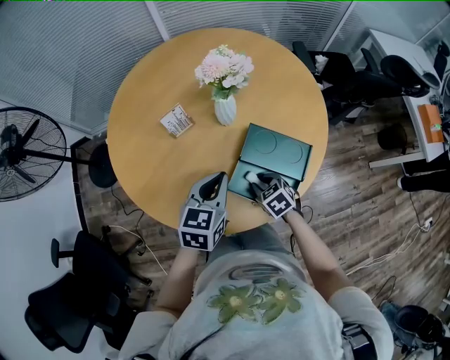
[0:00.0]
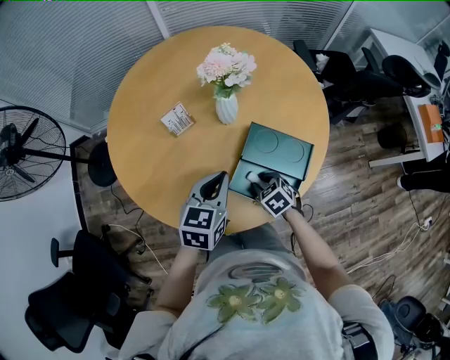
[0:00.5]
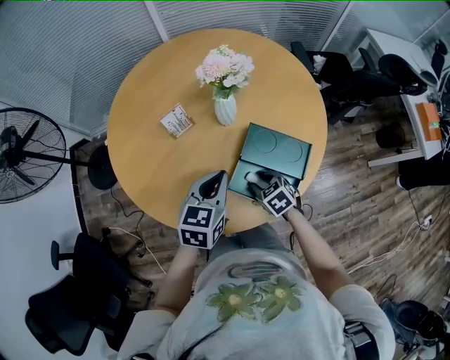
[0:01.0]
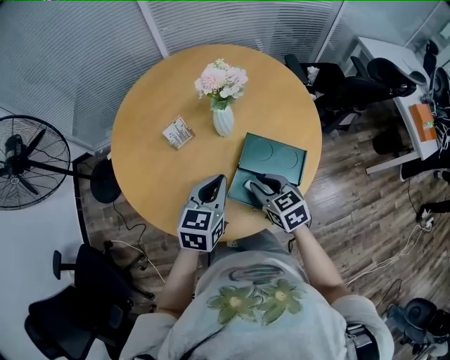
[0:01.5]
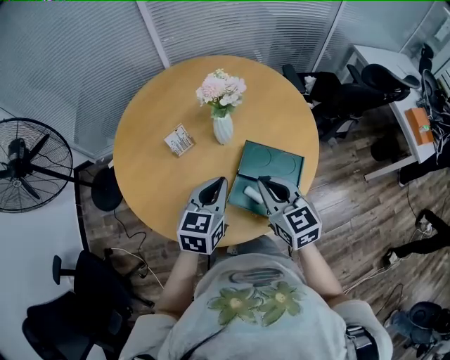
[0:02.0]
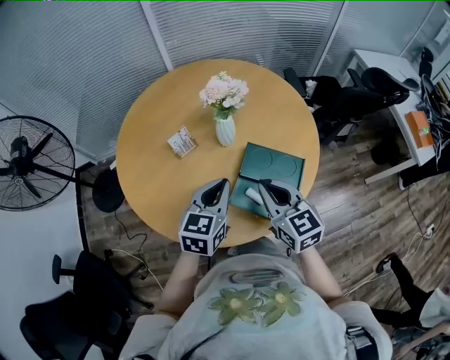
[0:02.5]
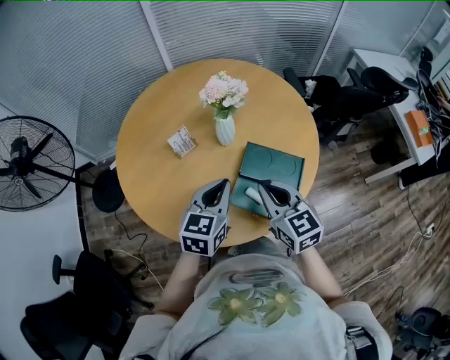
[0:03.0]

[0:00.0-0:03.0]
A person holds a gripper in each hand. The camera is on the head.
0:00.0 to 0:01.5: The right gripper is displaced upward by some 15 cm, and rotates approximately 20 degrees.
0:01.5 to 0:03.0: The right gripper heads upward, covering some 10 cm, and closes its fingers.

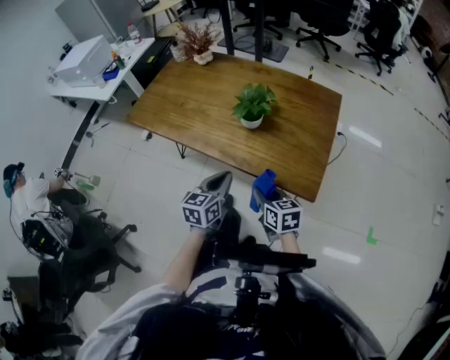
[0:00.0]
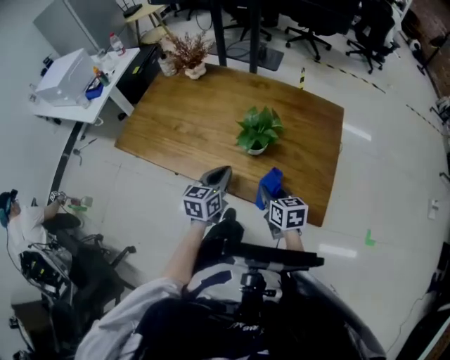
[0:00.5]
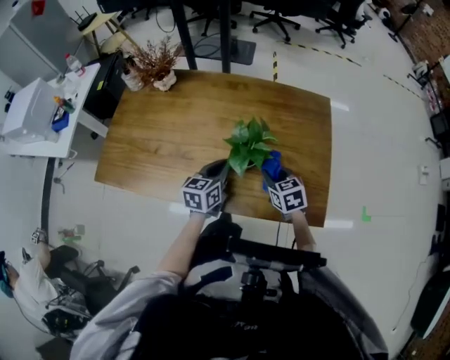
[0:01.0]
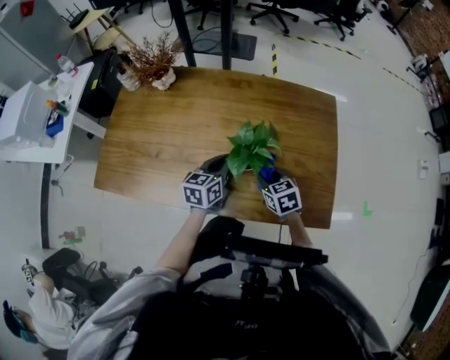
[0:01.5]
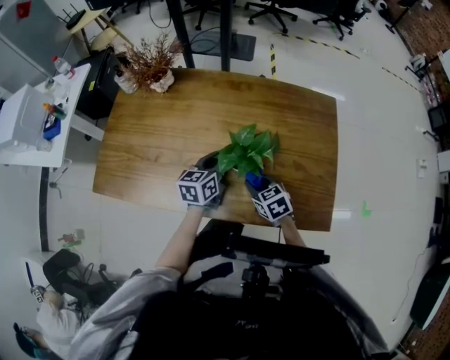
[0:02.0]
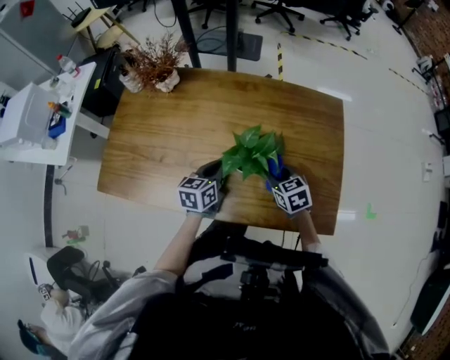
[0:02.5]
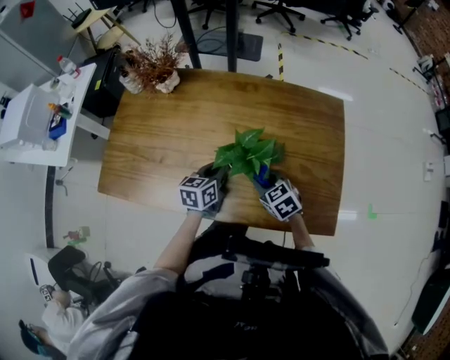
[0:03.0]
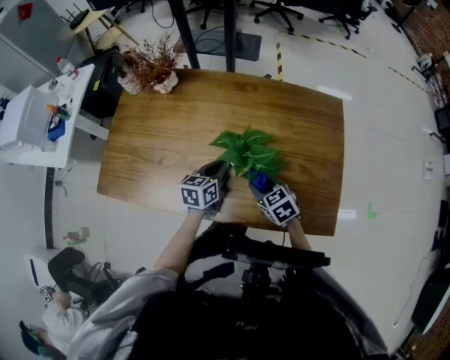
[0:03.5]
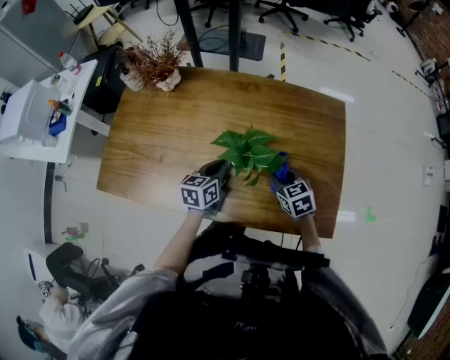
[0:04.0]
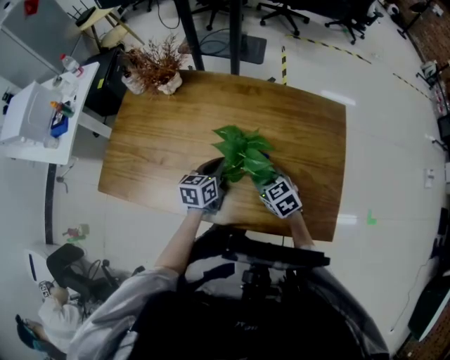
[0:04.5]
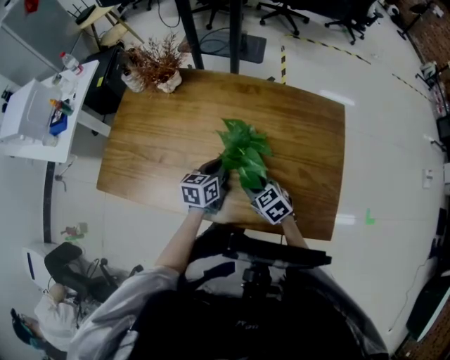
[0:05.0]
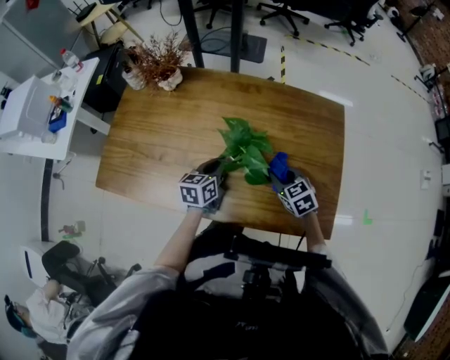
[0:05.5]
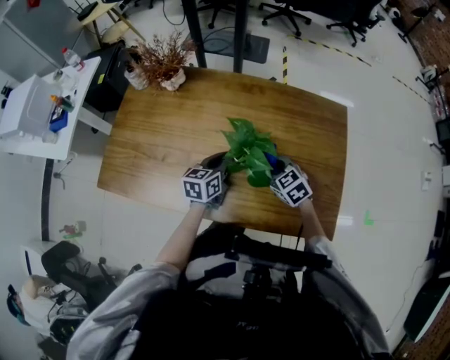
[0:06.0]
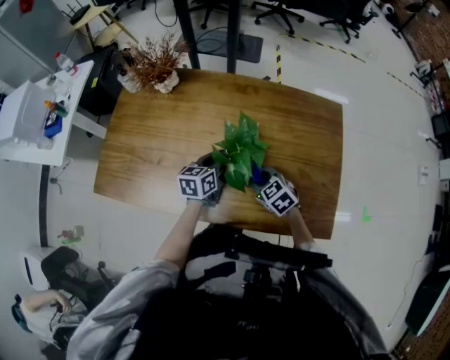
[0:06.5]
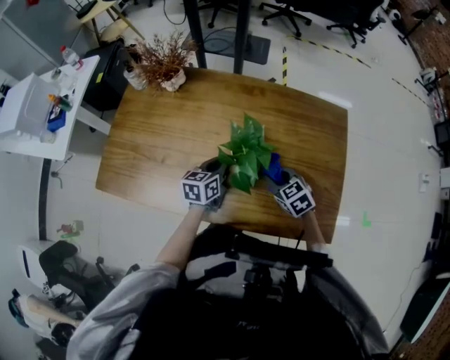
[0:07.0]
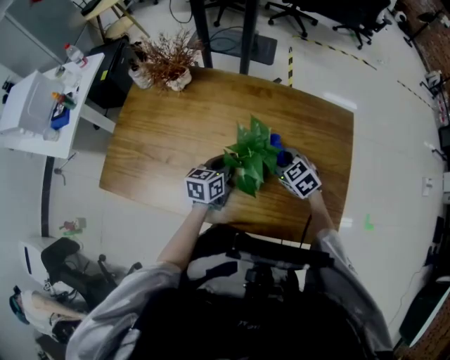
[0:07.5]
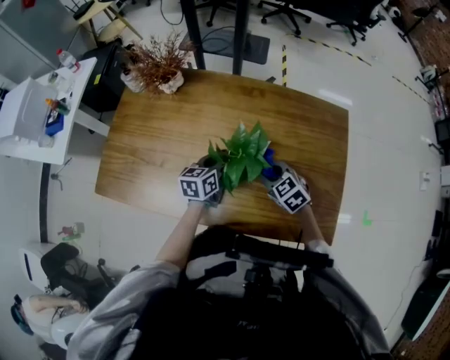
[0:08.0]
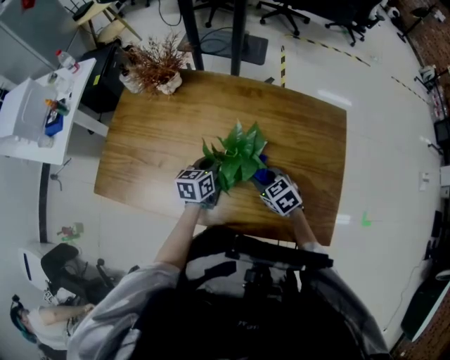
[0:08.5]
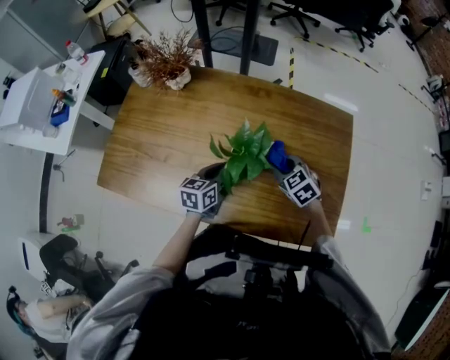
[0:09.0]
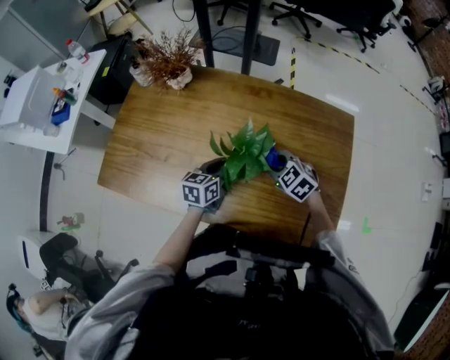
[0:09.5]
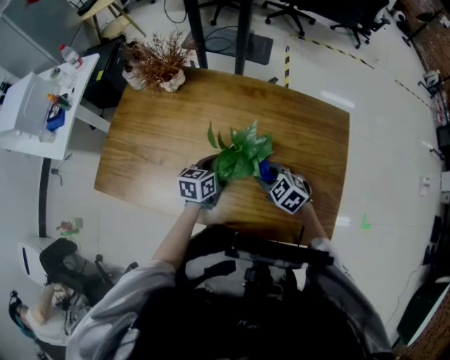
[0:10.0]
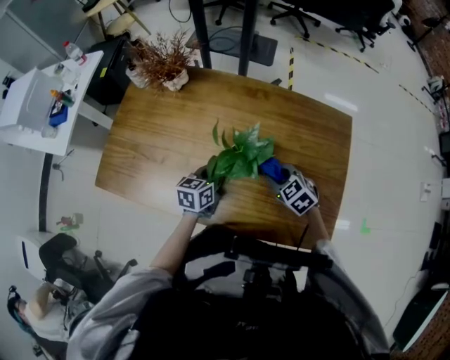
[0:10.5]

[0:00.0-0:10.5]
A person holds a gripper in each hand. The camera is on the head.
0:00.0 to 0:02.0: The grippers both shift forward by roughly 30 cm. The right gripper swivels roughly 20 degrees.
0:02.0 to 0:04.0: The right gripper moves left and right over some 5 cm, changing direction 2 times.
0:04.0 to 0:06.5: The right gripper goes left and right, approximately 10 cm each way, reversing 2 times.
0:06.5 to 0:08.5: The right gripper reaches roughly 10 cm forward, then returns.

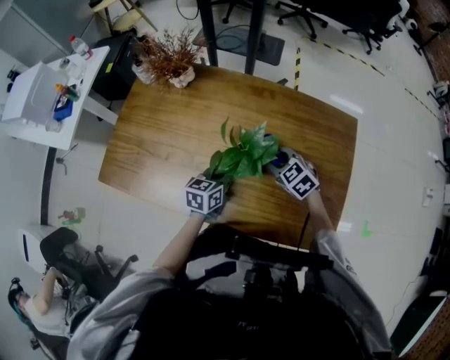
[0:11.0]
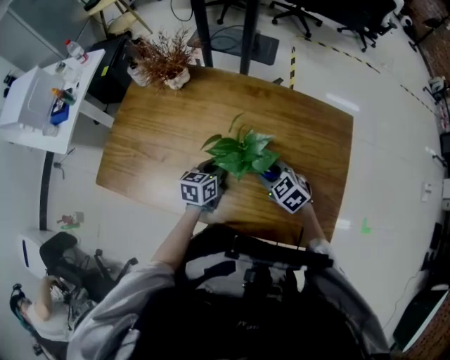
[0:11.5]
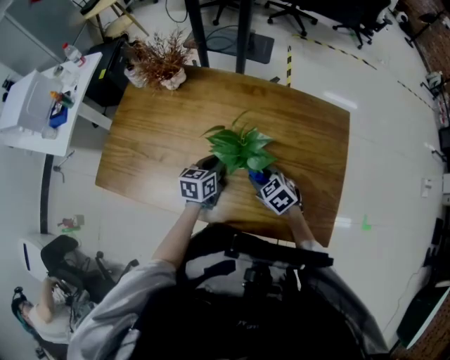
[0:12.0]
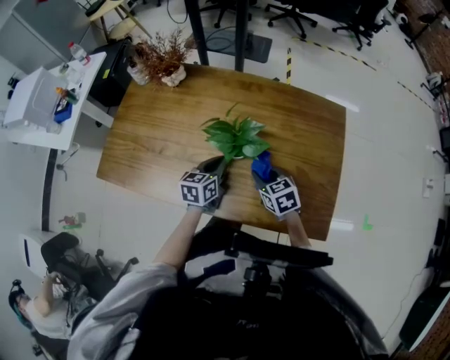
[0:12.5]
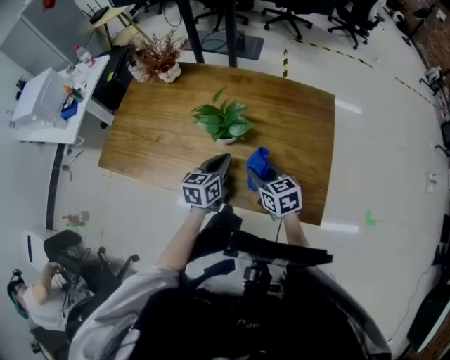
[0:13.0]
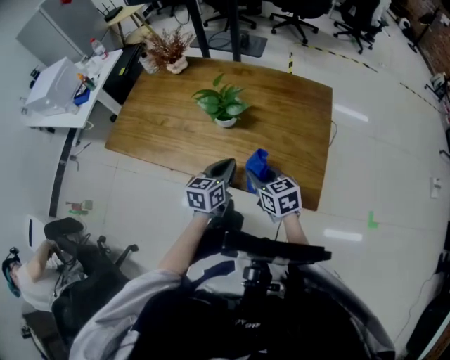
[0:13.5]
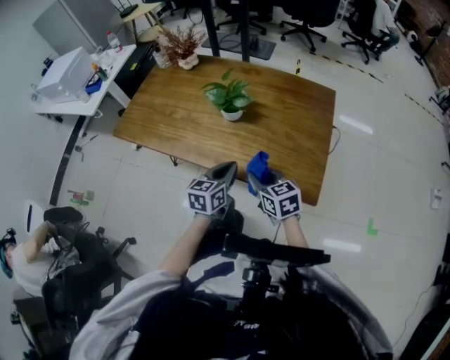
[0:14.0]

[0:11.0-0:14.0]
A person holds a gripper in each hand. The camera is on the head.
0:11.0 to 0:12.5: The right gripper is displaced backward by approximately 10 cm, and swivels about 30 degrees.
0:12.5 to 0:14.0: The two grippers go approximately 20 cm backward.

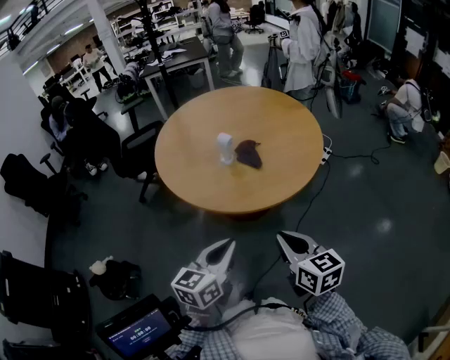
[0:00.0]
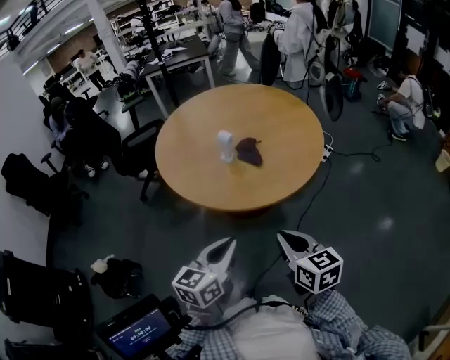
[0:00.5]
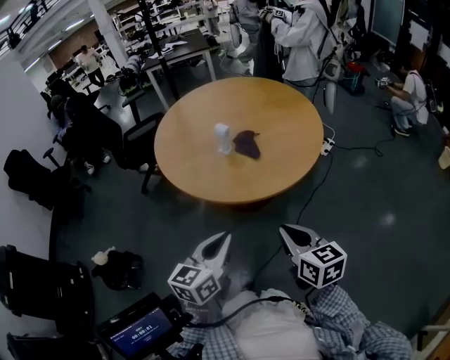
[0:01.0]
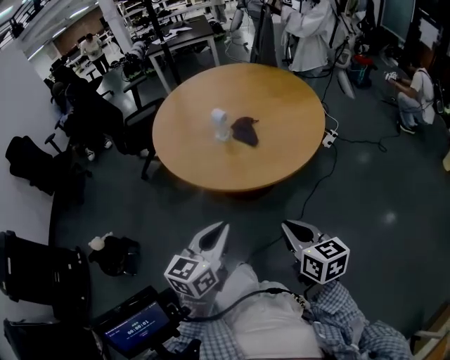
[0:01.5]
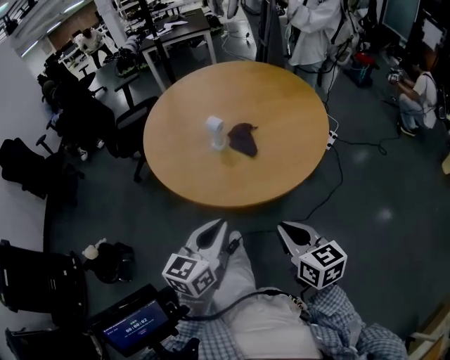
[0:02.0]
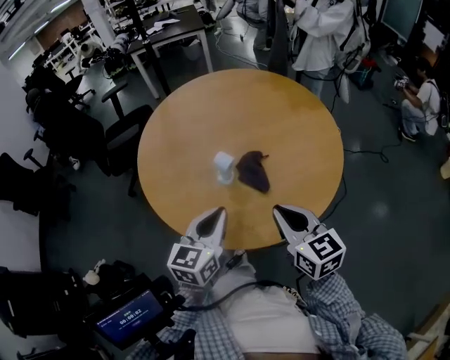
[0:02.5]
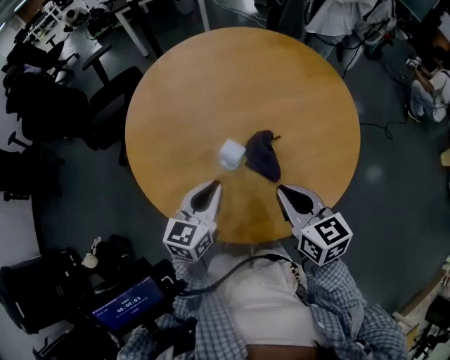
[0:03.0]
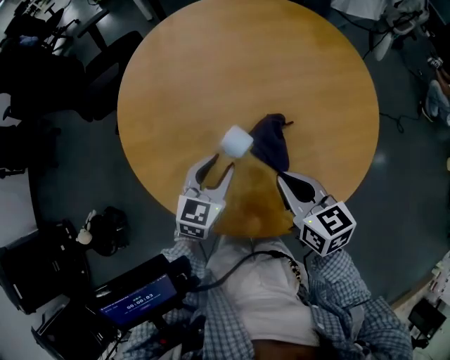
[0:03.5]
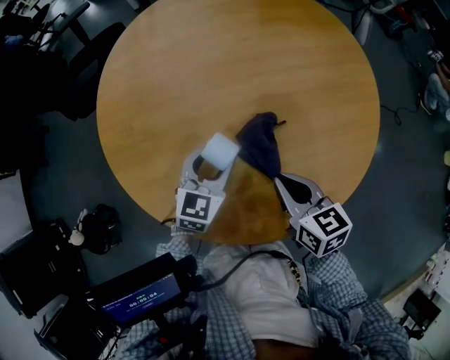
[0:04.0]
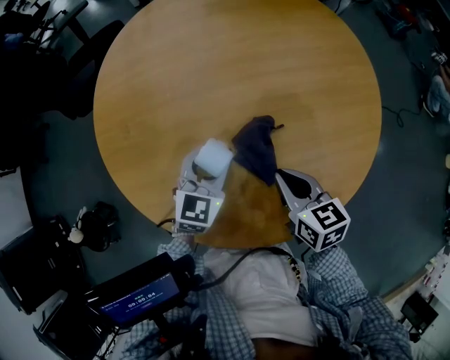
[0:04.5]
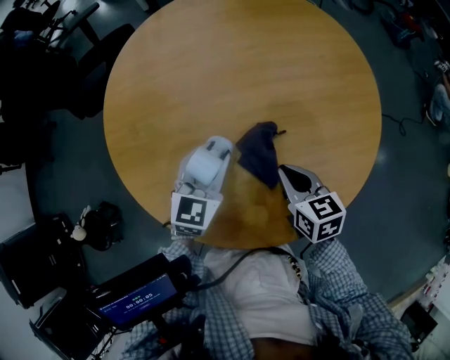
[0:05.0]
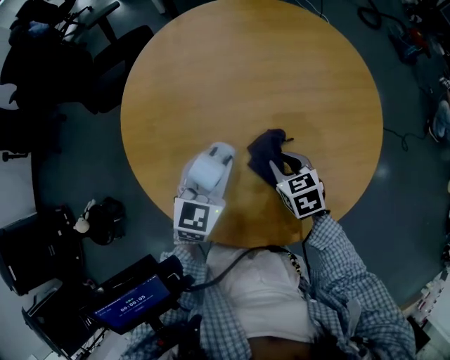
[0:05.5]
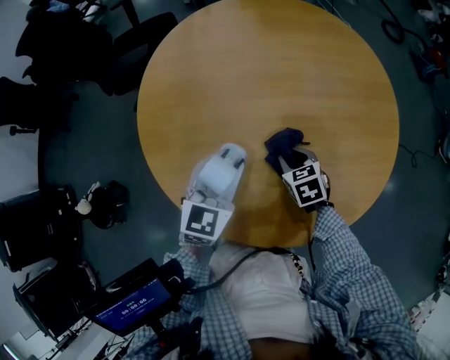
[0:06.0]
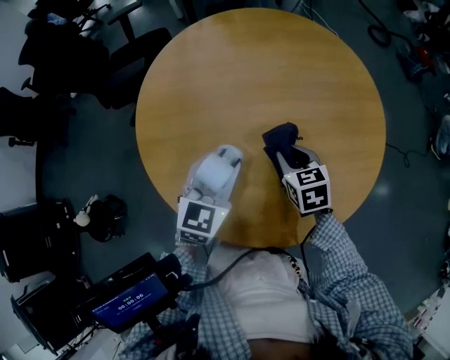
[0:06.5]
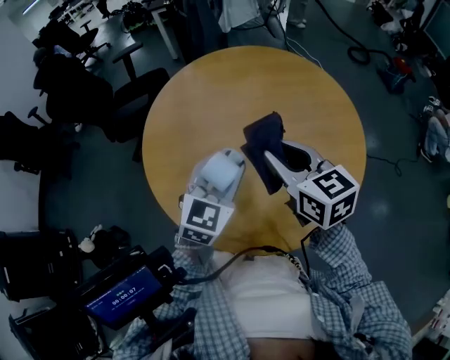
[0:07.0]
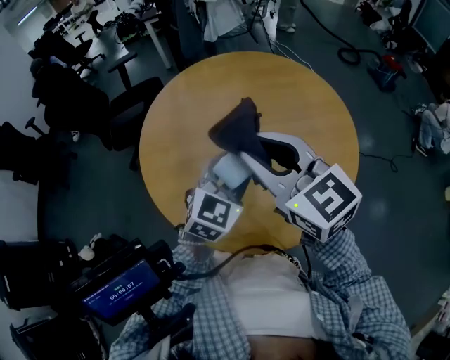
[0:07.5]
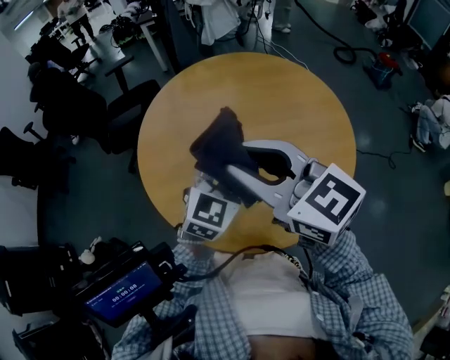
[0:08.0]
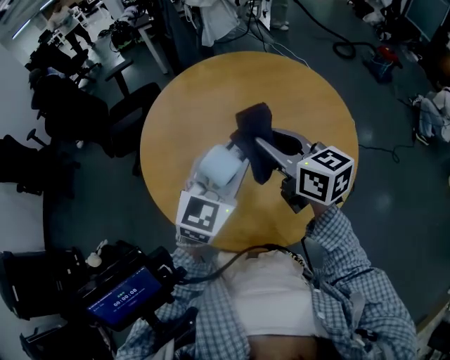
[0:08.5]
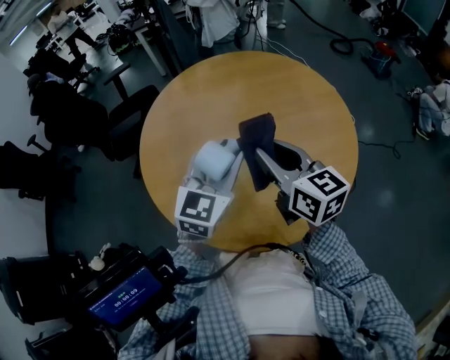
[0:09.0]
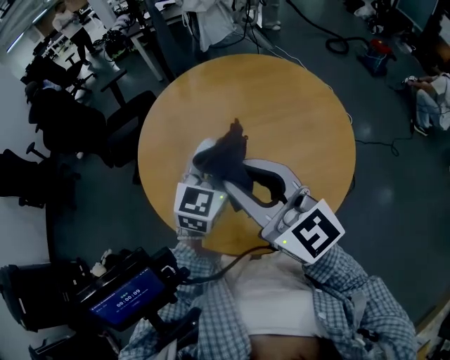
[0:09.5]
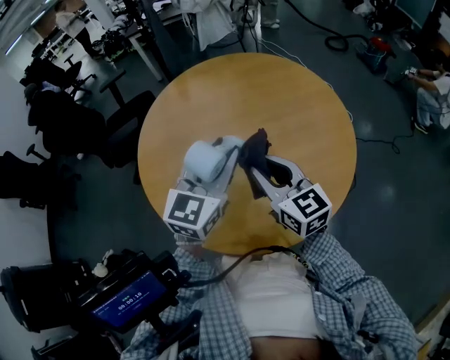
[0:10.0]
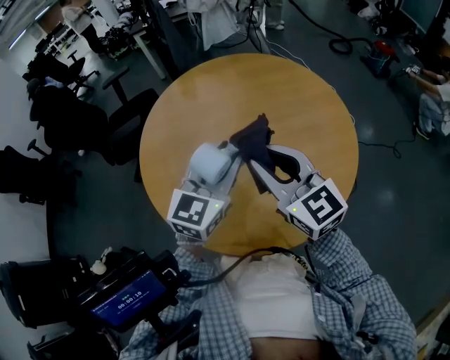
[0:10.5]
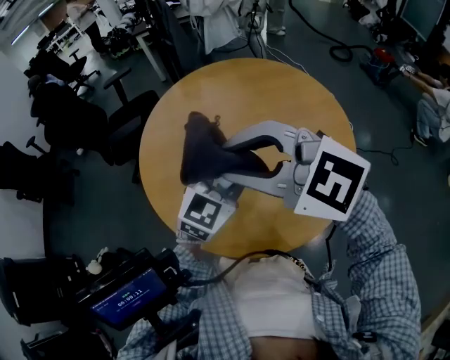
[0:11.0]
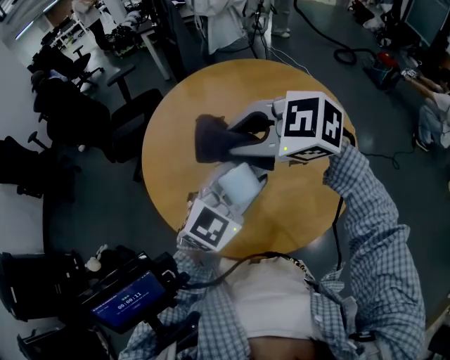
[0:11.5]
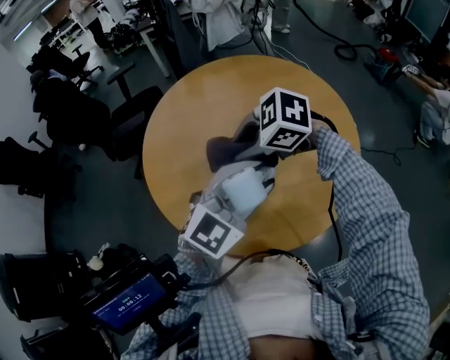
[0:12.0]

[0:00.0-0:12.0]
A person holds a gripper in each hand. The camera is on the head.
0:00.0 to 0:02.0: The two grippers go roughly 5 cm forward.
0:02.0 to 0:04.0: The right gripper goes roughly 30 cm forward; the left gripper travels forward and downward by roughly 40 cm, rotates approximately 20 degrees, and opens its fingers.
0:04.0 to 0:06.0: The left gripper heads upward, covering roughly 10 cm. Meanwhile the right gripper shifts about 15 cm downward and forward, turns by approximately 30 degrees, and opens up.
0:06.0 to 0:08.0: The right gripper is displaced upward by about 40 cm, and angles its fingers upward, by approximately 50 degrees. The left gripper shifts about 15 cm upward and to the right, and turns by approximately 20 degrees.
0:08.0 to 0:10.0: The left gripper ends up about 5 cm from where it was; the right gripper goes up and down, roughly 15 cm each way, reversing 2 times, and turns by some 20 degrees.
0:10.0 to 0:12.0: The right gripper goes upward and returns, some 15 cm each way, and angles its fingers downward, by about 40 degrees. Meanwhile the left gripper shifts by about 10 cm, and swivels approximately 30 degrees.
